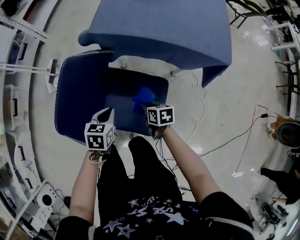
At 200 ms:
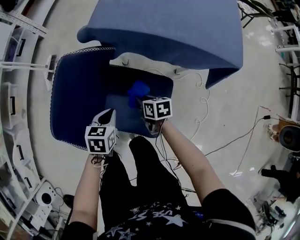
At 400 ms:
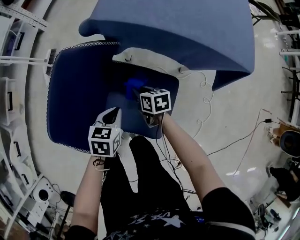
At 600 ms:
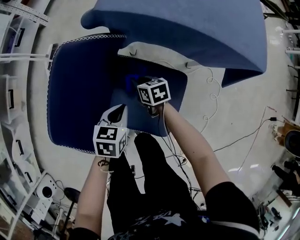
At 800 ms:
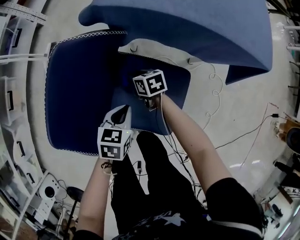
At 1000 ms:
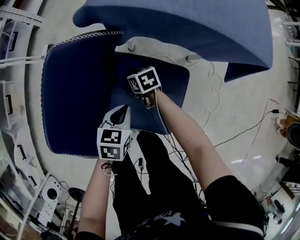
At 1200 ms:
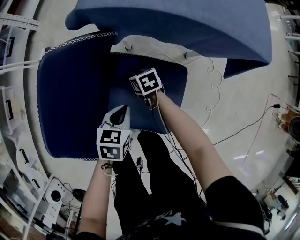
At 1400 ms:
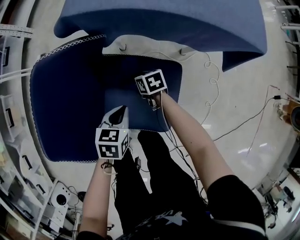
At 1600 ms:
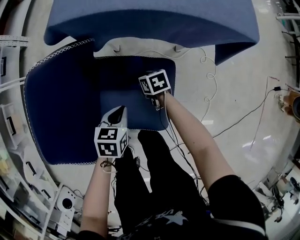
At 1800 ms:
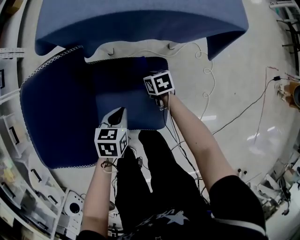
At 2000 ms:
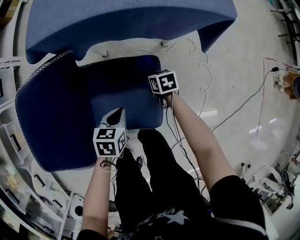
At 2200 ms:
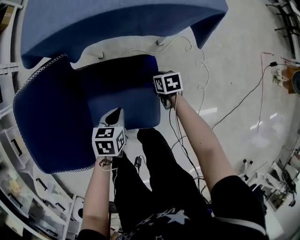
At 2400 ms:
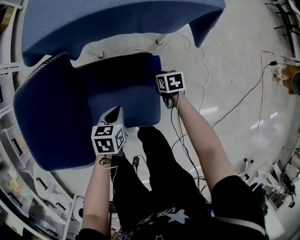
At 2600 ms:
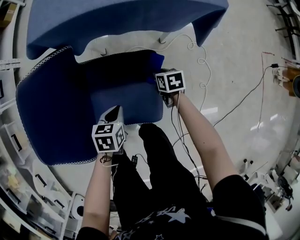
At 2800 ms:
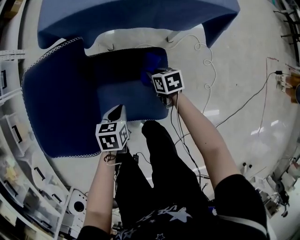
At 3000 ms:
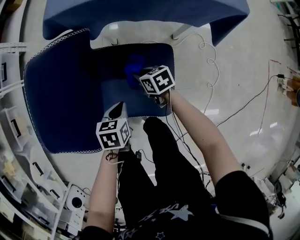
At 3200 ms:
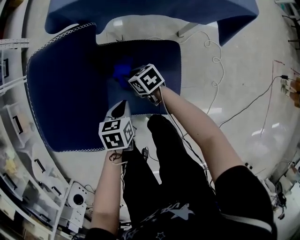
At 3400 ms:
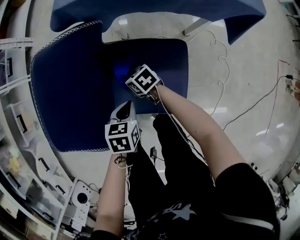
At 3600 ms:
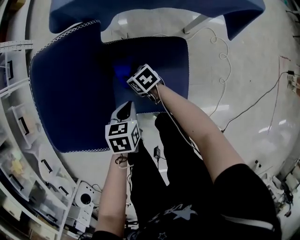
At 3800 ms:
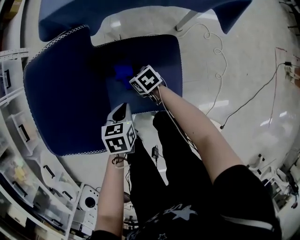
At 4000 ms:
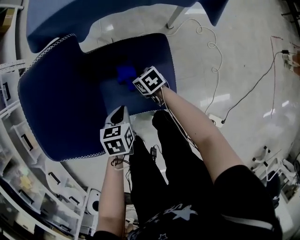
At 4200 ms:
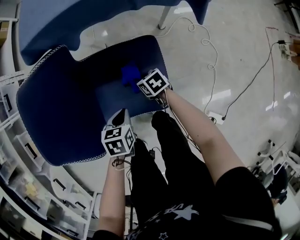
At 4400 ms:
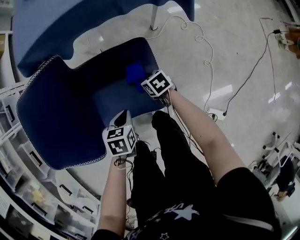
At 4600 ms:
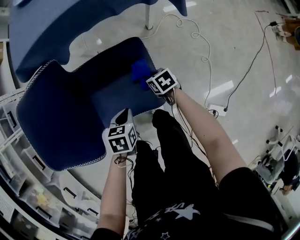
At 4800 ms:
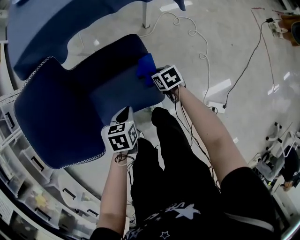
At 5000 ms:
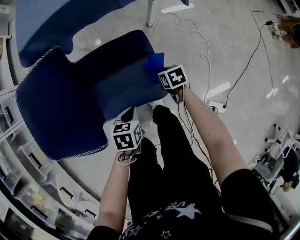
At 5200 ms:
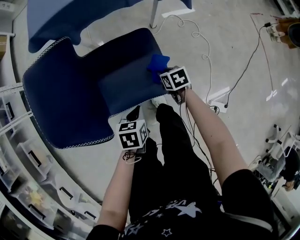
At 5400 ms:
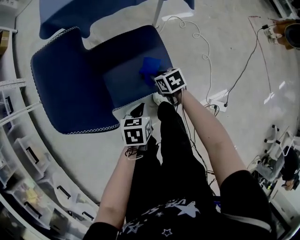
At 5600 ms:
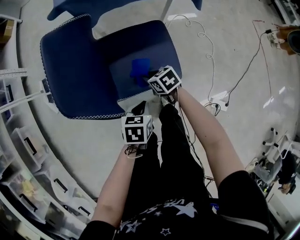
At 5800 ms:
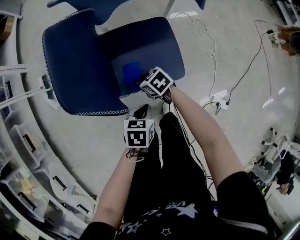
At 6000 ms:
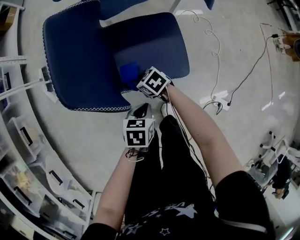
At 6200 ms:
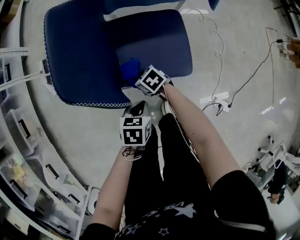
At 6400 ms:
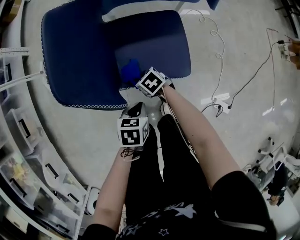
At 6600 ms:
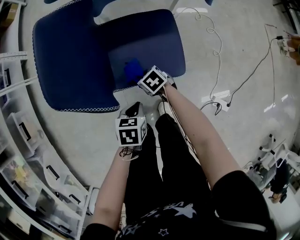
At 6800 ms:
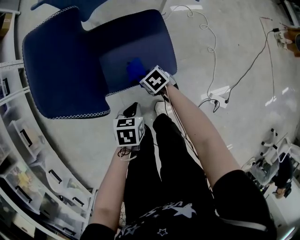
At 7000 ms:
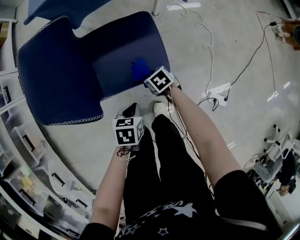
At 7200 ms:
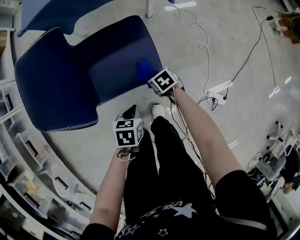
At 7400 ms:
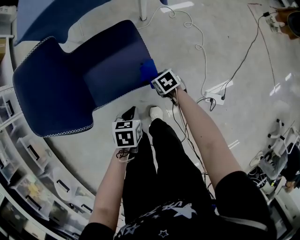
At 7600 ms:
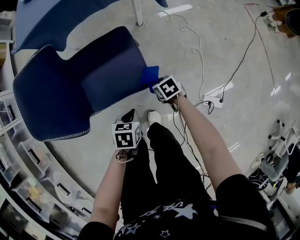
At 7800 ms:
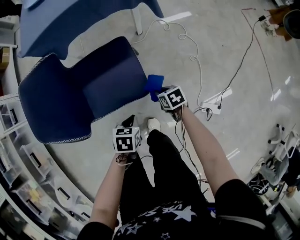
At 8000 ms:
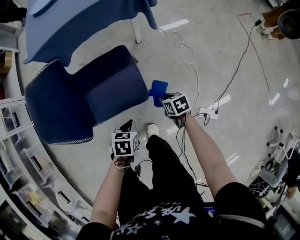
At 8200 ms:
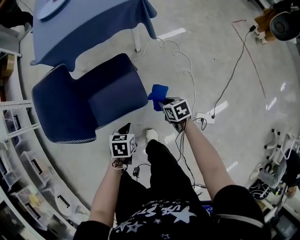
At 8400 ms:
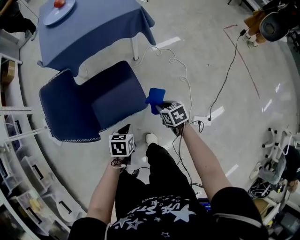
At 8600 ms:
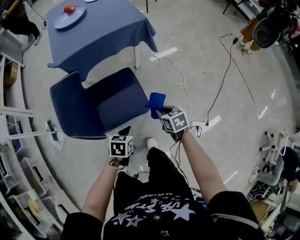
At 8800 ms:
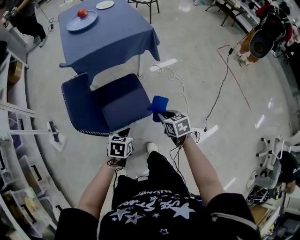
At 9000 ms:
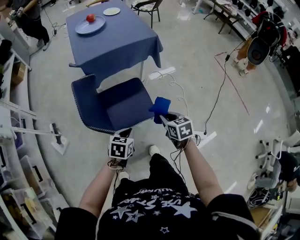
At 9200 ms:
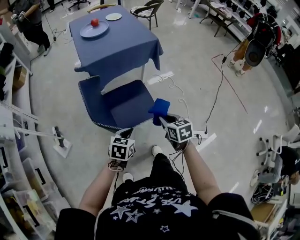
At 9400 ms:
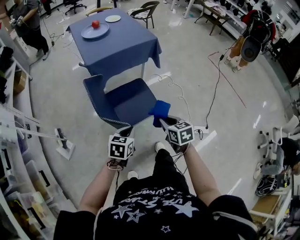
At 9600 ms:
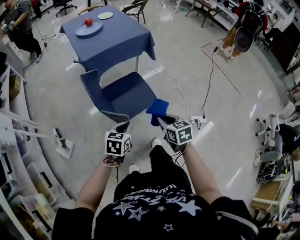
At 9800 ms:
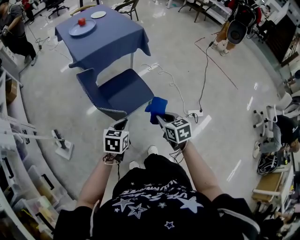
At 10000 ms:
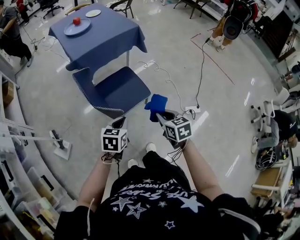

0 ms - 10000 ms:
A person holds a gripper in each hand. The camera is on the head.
0 ms - 1400 ms: The right gripper heads downward and forward, covering some 20 cm. The left gripper travels downward by about 10 cm.
1400 ms - 2800 ms: The right gripper shifts some 15 cm to the right and backward; the left gripper goes about 5 cm backward.
2800 ms - 4200 ms: The right gripper heads downward and backward, covering roughly 5 cm, and travels to the left and back again, roughly 20 cm each way.
4200 ms - 5800 ms: The left gripper shifts some 15 cm backward; the right gripper shifts approximately 20 cm to the left, backward and upward.
5800 ms - 7200 ms: The right gripper ends up roughly 20 cm from where it was, while the left gripper ends up roughly 10 cm from where it was.
7200 ms - 8600 ms: The left gripper travels upward by roughly 15 cm. Meanwhile the right gripper moves upward, approximately 25 cm, and swivels some 30 degrees.
8600 ms - 10000 ms: The right gripper goes some 35 cm backward, upward and to the left, and changes its angle by roughly 20 degrees; the left gripper heads backward, to the left and upward, covering approximately 30 cm, and swivels about 20 degrees.

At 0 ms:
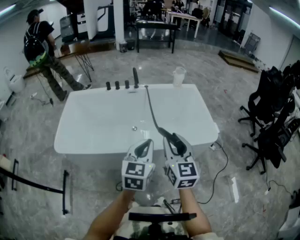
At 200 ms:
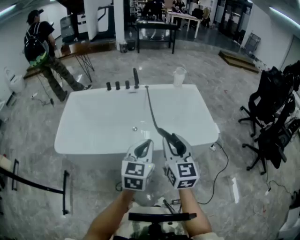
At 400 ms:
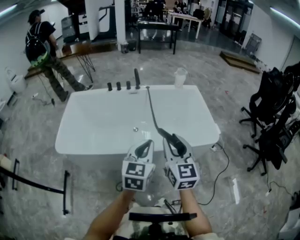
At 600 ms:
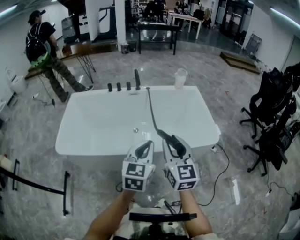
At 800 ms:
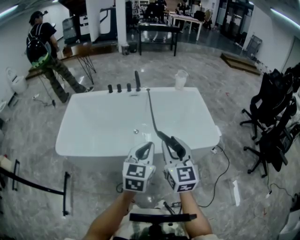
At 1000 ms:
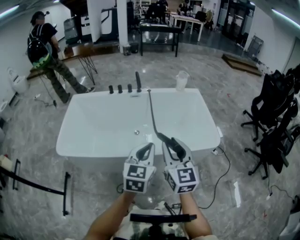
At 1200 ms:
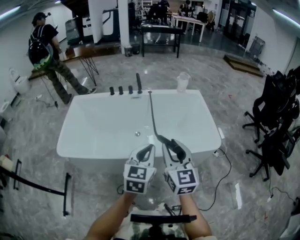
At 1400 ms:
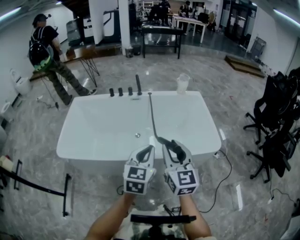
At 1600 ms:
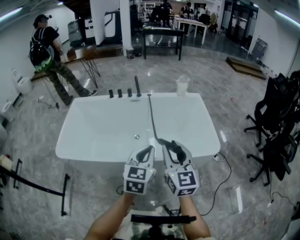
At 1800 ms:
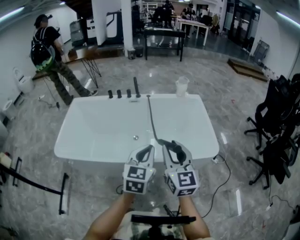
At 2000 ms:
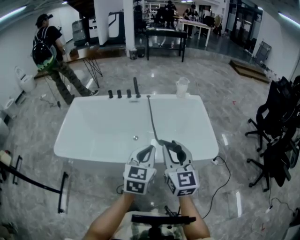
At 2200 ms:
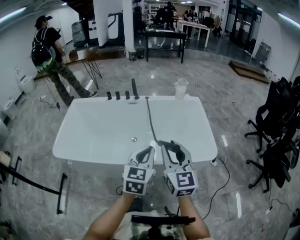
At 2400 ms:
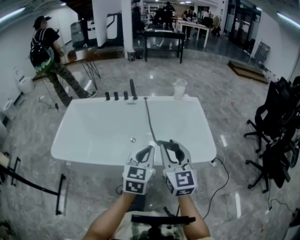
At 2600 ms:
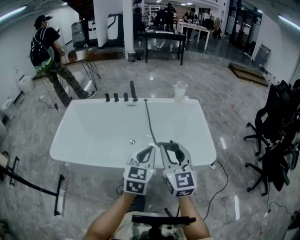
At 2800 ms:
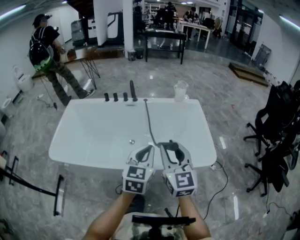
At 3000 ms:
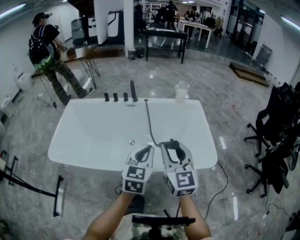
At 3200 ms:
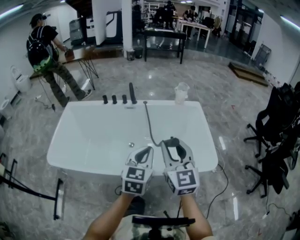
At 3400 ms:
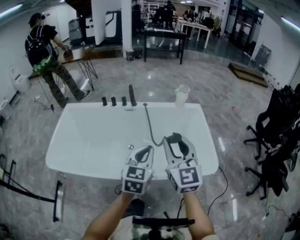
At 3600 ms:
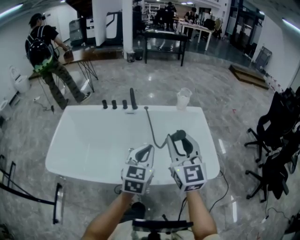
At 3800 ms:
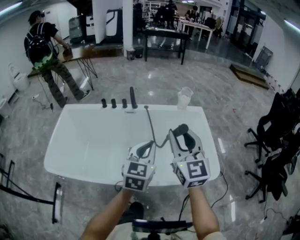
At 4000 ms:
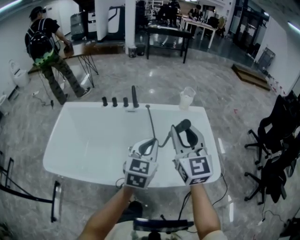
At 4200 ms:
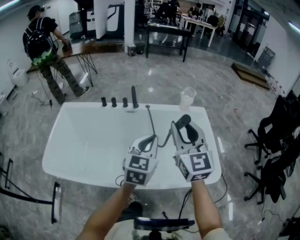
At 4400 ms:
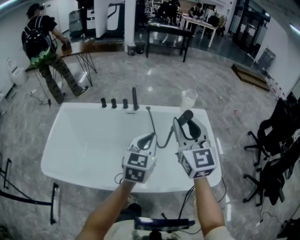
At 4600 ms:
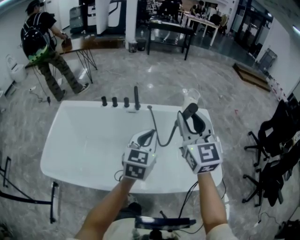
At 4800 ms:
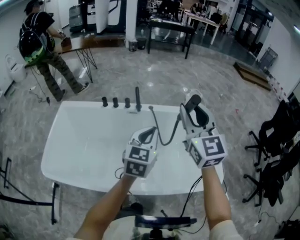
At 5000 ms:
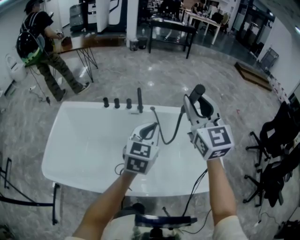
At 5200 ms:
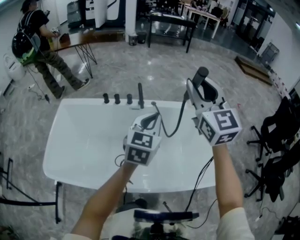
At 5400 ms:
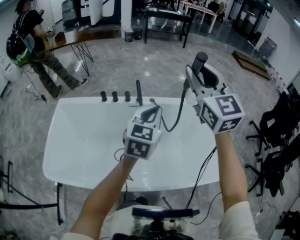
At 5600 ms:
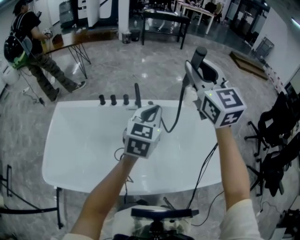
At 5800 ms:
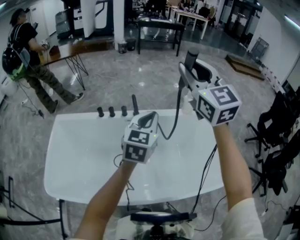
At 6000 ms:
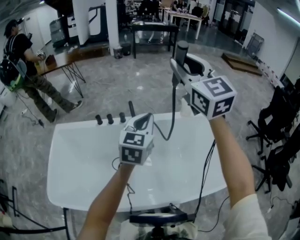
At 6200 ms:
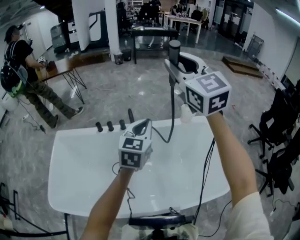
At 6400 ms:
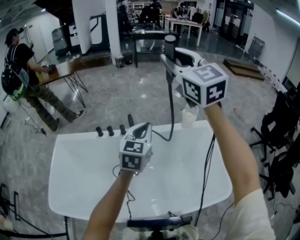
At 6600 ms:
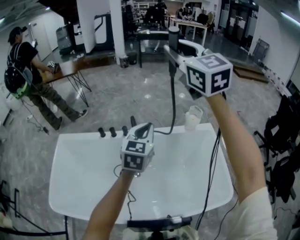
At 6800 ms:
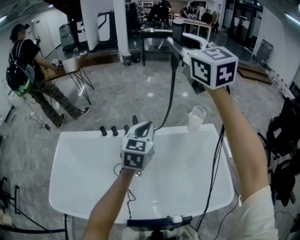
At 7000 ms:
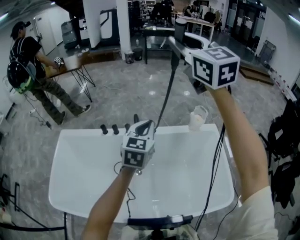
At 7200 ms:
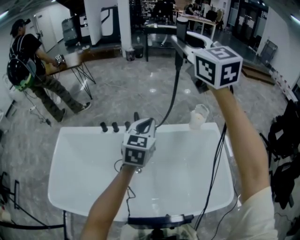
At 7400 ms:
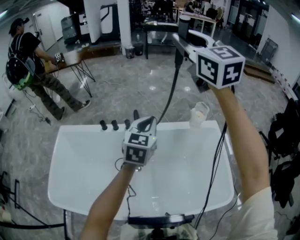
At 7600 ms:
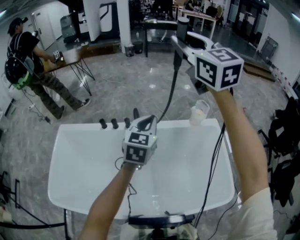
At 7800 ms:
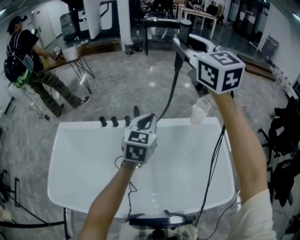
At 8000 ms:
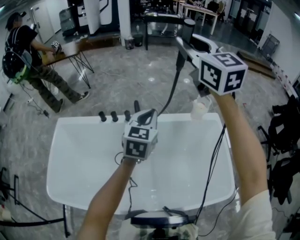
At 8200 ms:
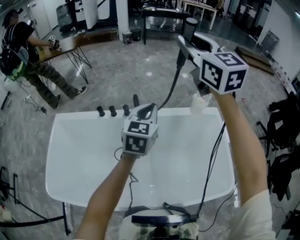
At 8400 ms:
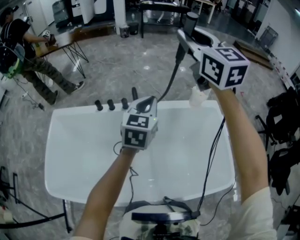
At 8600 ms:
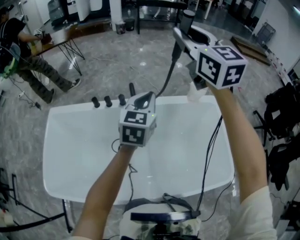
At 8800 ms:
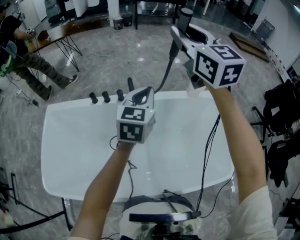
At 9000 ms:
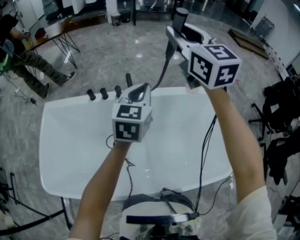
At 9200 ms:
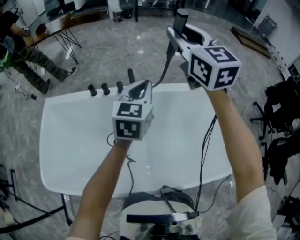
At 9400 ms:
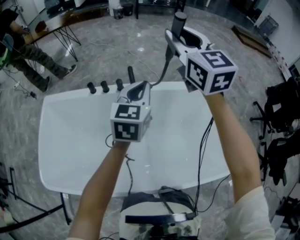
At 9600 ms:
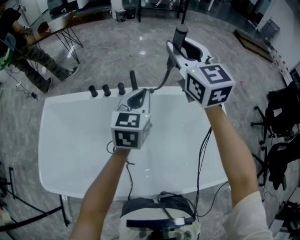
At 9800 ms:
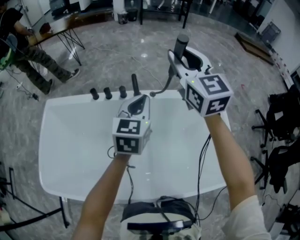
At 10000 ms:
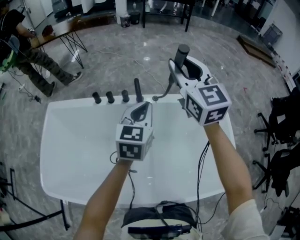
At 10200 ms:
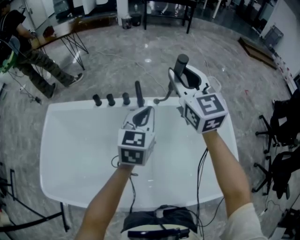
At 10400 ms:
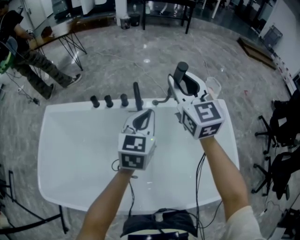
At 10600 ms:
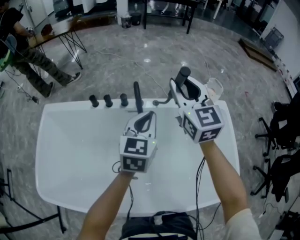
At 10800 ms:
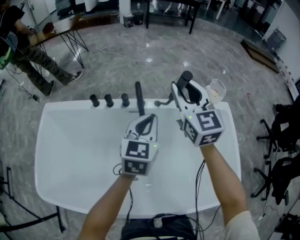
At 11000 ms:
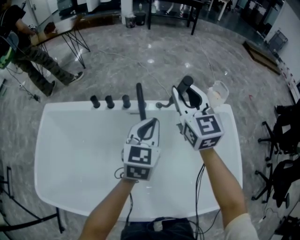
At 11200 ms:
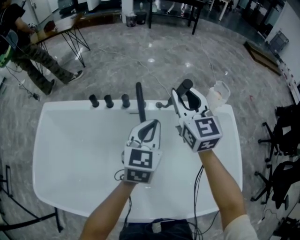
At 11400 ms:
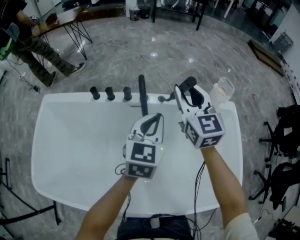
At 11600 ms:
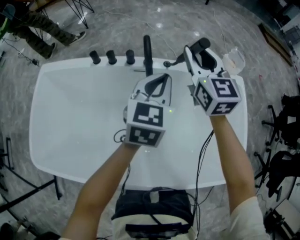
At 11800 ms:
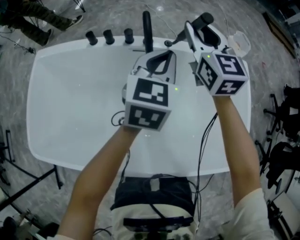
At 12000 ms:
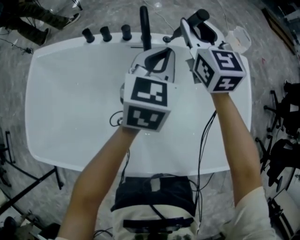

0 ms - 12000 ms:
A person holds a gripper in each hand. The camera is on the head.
0 ms - 1600 ms: The left gripper changes place by roughly 5 cm.
1600 ms - 3000 ms: Both grippers travel together forward, about 10 cm.
3000 ms - 4400 ms: Both grippers move forward, approximately 20 cm.
4400 ms - 6000 ms: The right gripper heads forward and upward, covering approximately 25 cm, while the left gripper is displaced forward by some 15 cm.
6000 ms - 7600 ms: Both grippers travel together forward, approximately 10 cm.
7600 ms - 9000 ms: The right gripper heads downward, covering about 15 cm.
9000 ms - 10400 ms: The left gripper shifts some 10 cm downward. Meanwhile the right gripper heads downward, covering roughly 15 cm.
10400 ms - 12000 ms: The left gripper is displaced downward by approximately 5 cm; the right gripper travels downward by approximately 15 cm.

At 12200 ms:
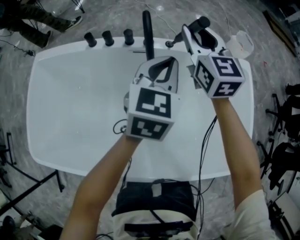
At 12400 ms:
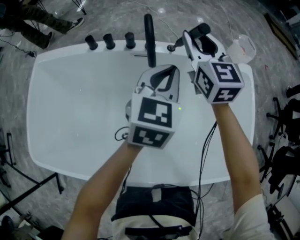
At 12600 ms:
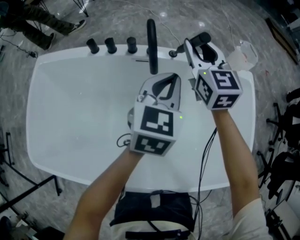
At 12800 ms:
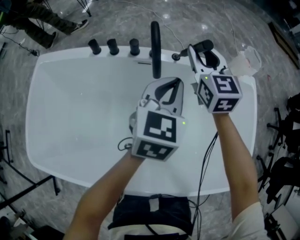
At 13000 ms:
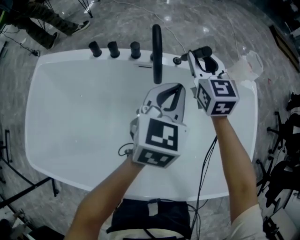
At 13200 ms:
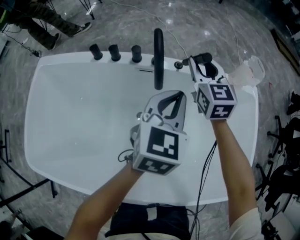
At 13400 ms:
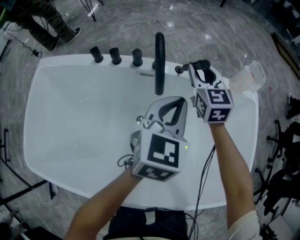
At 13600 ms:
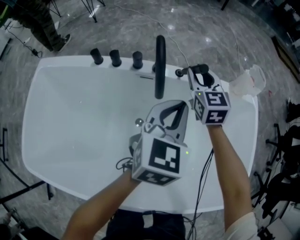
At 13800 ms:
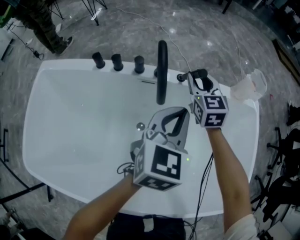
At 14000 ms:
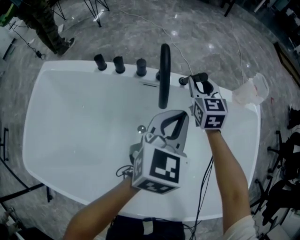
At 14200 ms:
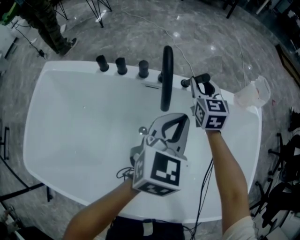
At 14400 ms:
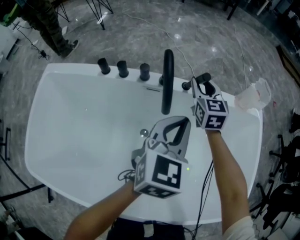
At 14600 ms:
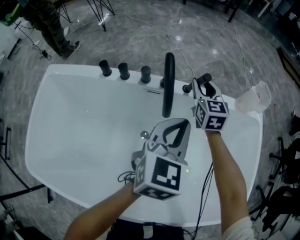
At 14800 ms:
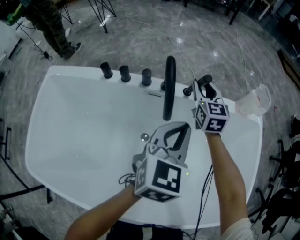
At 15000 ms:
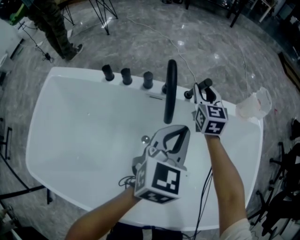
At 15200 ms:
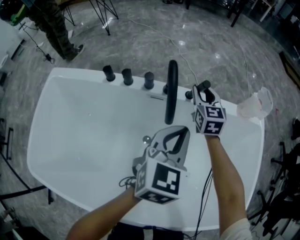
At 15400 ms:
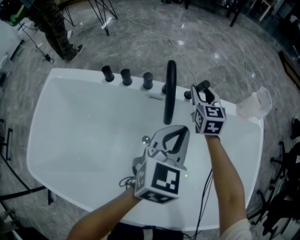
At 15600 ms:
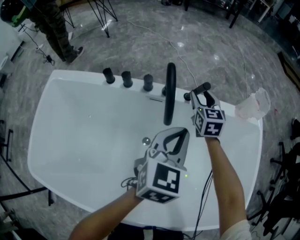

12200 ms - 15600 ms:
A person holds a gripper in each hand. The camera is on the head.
12200 ms - 13800 ms: The right gripper goes about 15 cm downward and forward.
13800 ms - 15600 ms: The right gripper moves approximately 5 cm.
